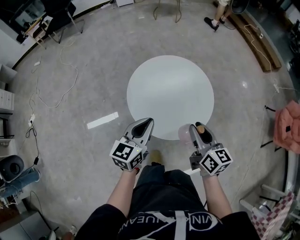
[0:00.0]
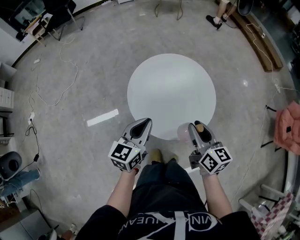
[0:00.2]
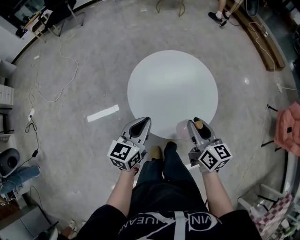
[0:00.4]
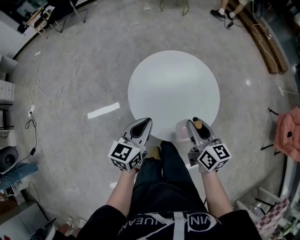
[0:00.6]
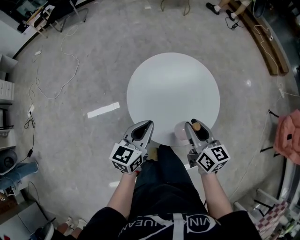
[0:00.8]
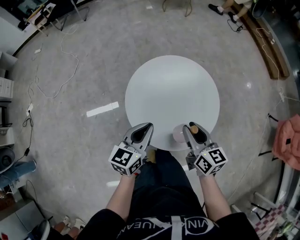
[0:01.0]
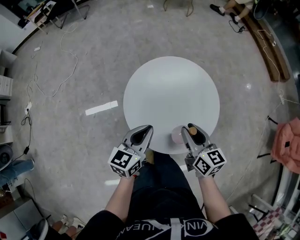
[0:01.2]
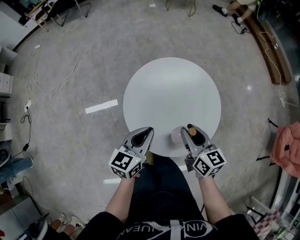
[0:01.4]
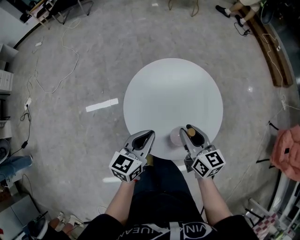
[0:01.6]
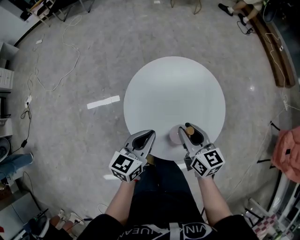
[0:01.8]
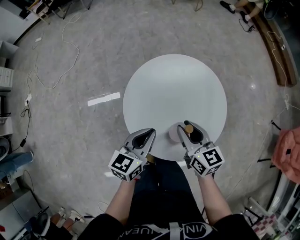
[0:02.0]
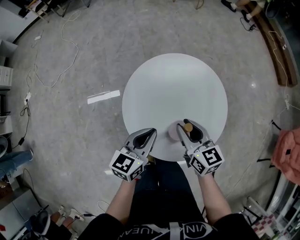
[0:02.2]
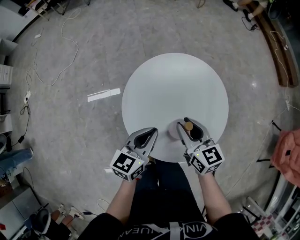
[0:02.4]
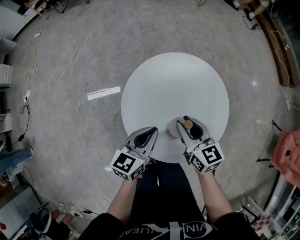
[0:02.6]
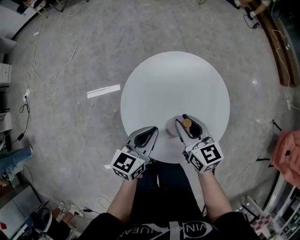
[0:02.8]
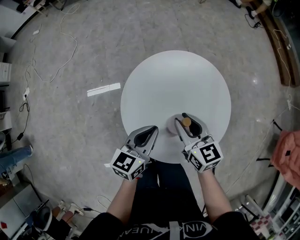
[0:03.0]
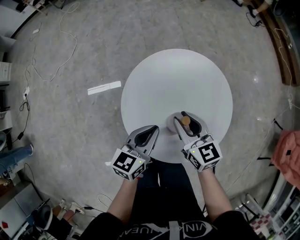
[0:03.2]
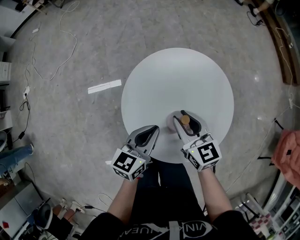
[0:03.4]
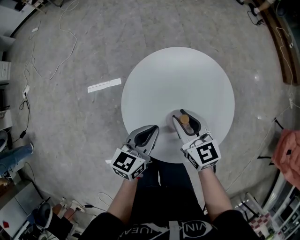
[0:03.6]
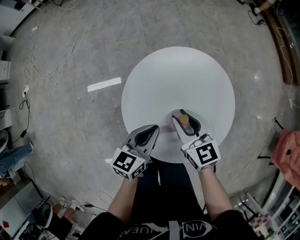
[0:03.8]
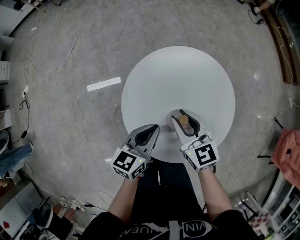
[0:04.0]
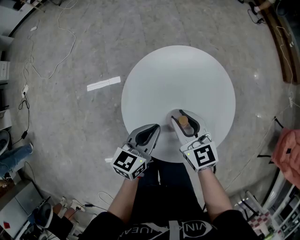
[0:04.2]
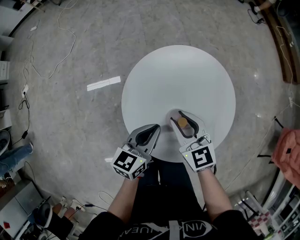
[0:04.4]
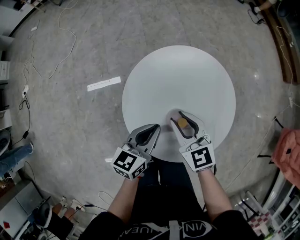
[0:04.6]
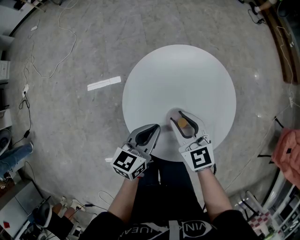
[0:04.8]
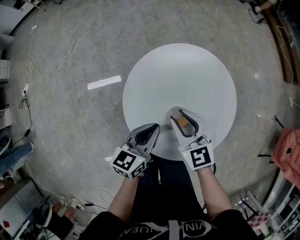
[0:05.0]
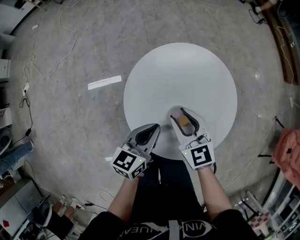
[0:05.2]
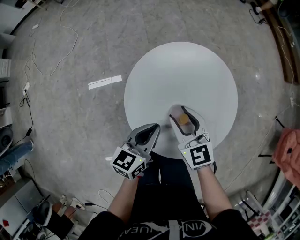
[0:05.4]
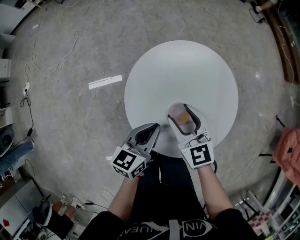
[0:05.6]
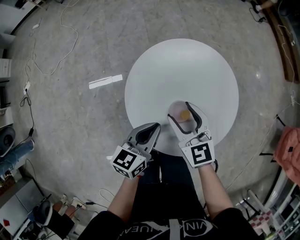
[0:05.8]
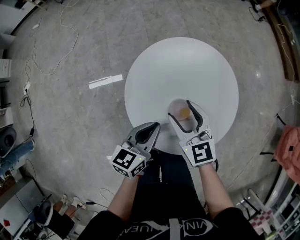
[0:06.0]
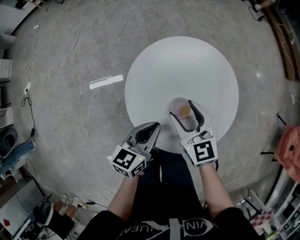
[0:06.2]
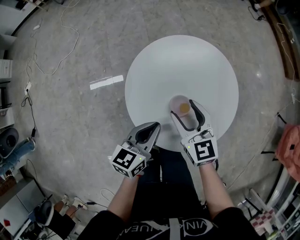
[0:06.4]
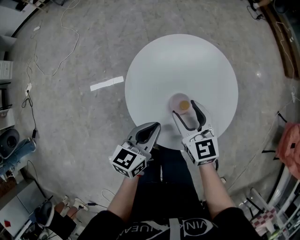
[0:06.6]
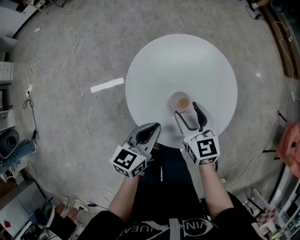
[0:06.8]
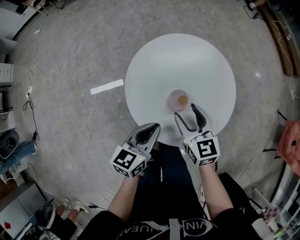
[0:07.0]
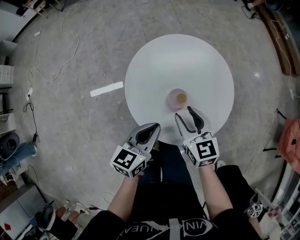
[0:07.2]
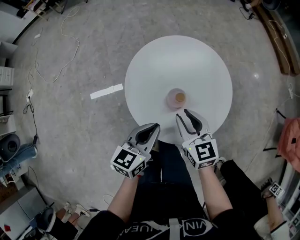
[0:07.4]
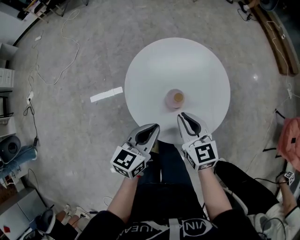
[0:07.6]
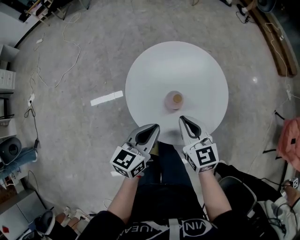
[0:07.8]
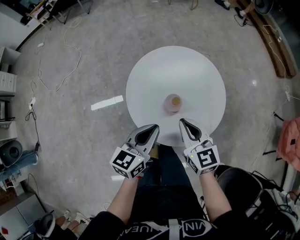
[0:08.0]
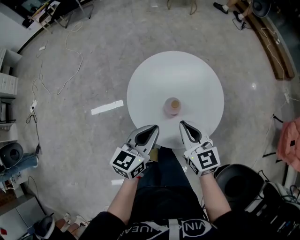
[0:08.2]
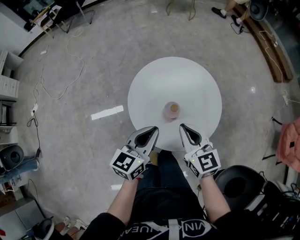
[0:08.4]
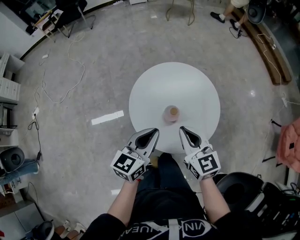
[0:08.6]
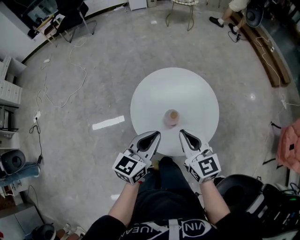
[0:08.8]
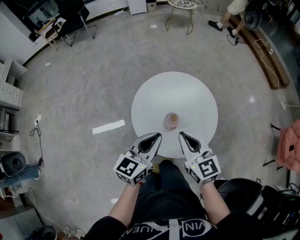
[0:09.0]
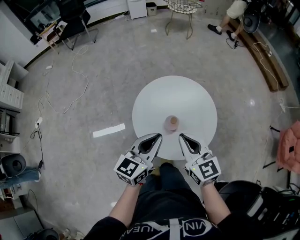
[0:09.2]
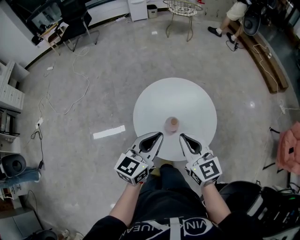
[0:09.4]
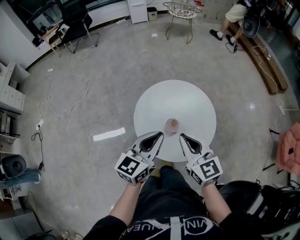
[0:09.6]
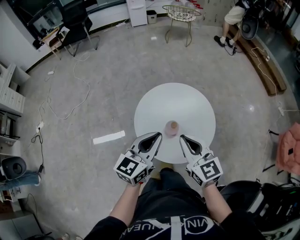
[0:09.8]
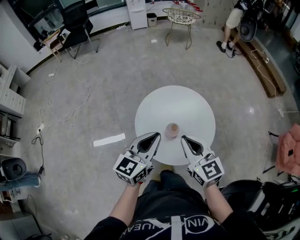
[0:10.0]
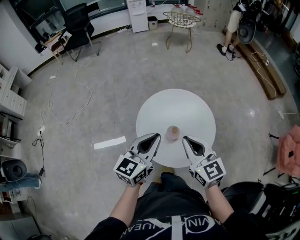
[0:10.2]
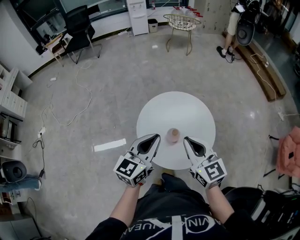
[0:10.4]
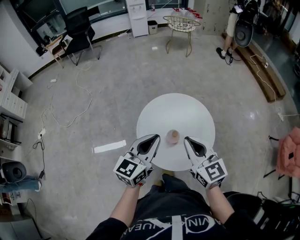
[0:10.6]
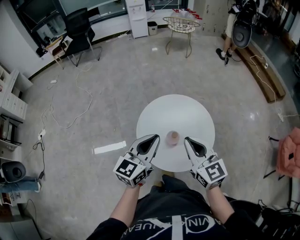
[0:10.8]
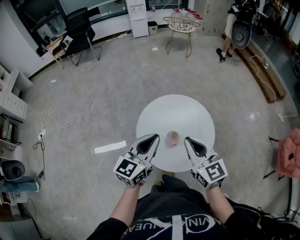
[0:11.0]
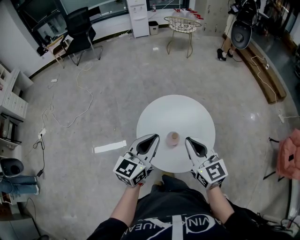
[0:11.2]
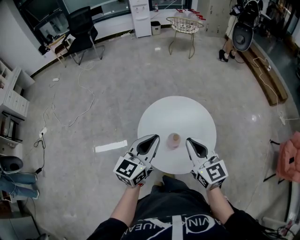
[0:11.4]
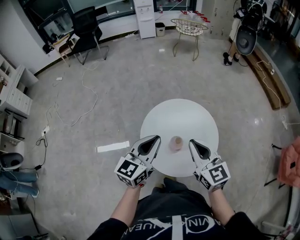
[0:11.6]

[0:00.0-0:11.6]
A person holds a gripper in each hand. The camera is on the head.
0:00.0 to 0:01.4: The left gripper is displaced downward by about 5 cm. The right gripper is displaced forward and downward by approximately 10 cm.
0:01.4 to 0:02.8: The right gripper moves forward, approximately 5 cm.
0:02.8 to 0:04.4: The grippers stay close to where they were, moving slightly.
0:04.4 to 0:05.8: The right gripper opens up.
0:05.8 to 0:07.2: The right gripper moves backward, about 5 cm. The left gripper moves some 5 cm.
0:07.2 to 0:08.8: The two grippers go approximately 10 cm upward. The right gripper closes up.
0:08.8 to 0:10.2: Both grippers travel together upward, about 10 cm.
0:10.2 to 0:11.6: The grippers stay close to where they were, moving slightly.

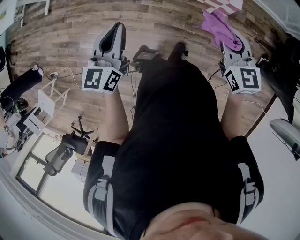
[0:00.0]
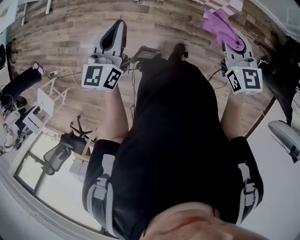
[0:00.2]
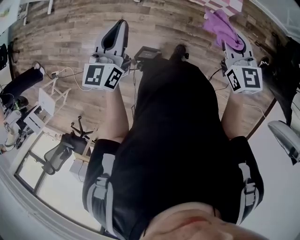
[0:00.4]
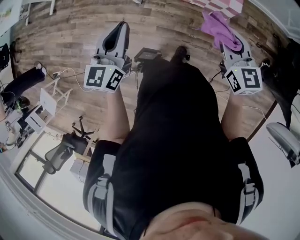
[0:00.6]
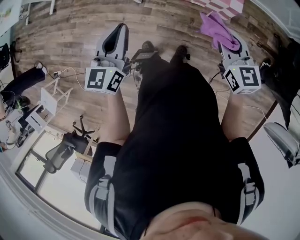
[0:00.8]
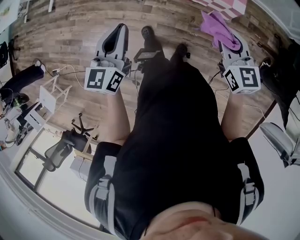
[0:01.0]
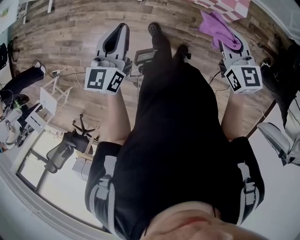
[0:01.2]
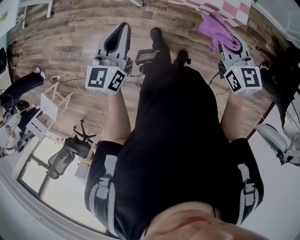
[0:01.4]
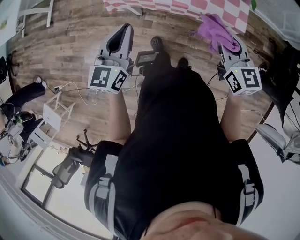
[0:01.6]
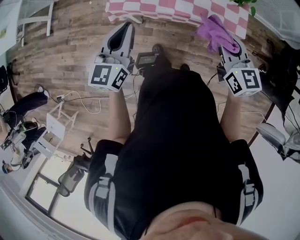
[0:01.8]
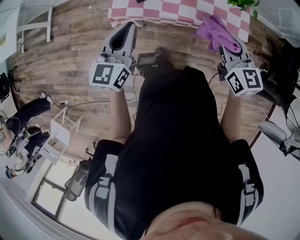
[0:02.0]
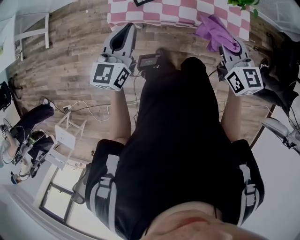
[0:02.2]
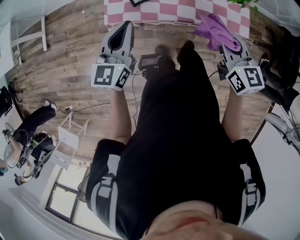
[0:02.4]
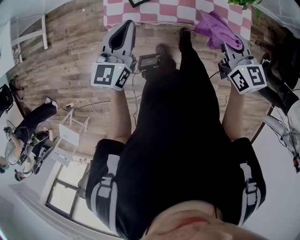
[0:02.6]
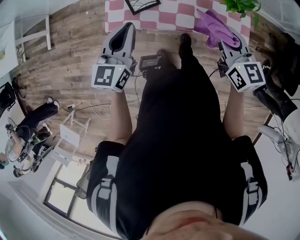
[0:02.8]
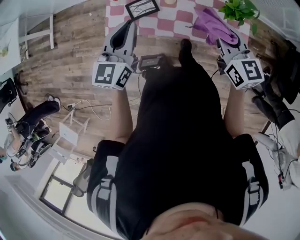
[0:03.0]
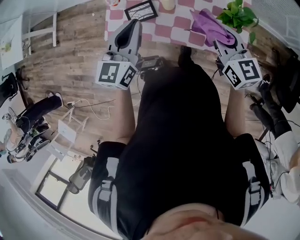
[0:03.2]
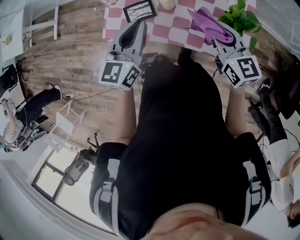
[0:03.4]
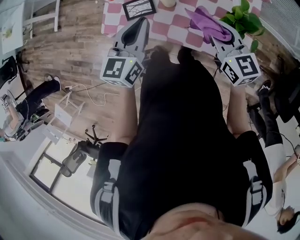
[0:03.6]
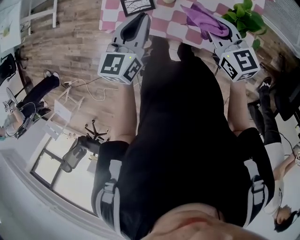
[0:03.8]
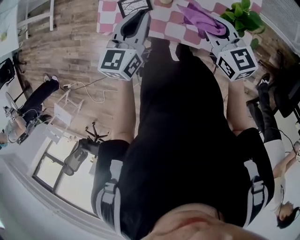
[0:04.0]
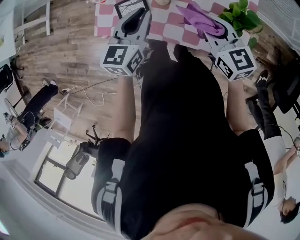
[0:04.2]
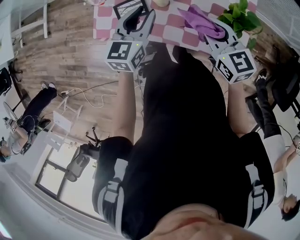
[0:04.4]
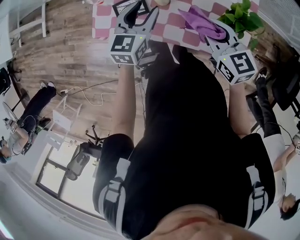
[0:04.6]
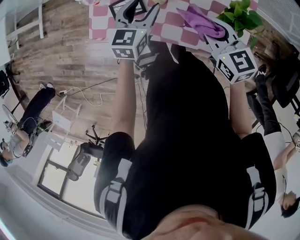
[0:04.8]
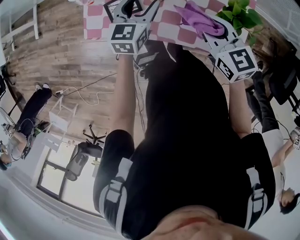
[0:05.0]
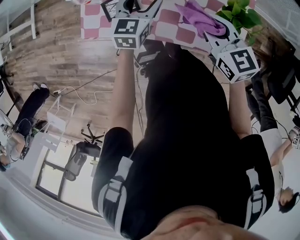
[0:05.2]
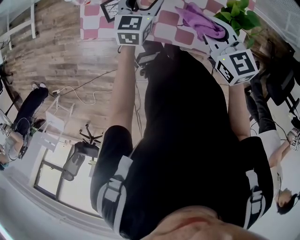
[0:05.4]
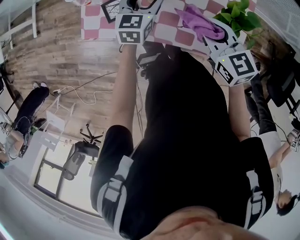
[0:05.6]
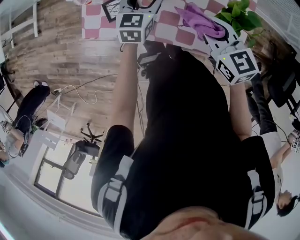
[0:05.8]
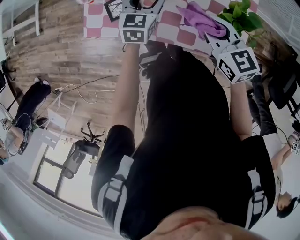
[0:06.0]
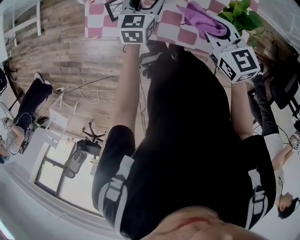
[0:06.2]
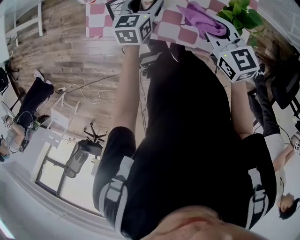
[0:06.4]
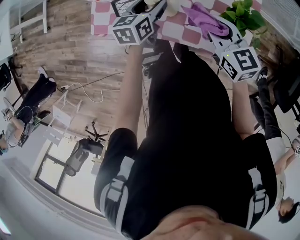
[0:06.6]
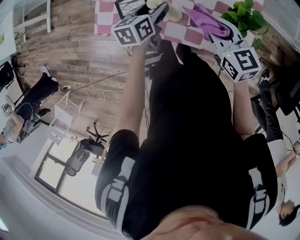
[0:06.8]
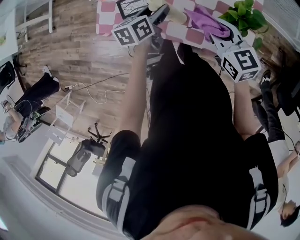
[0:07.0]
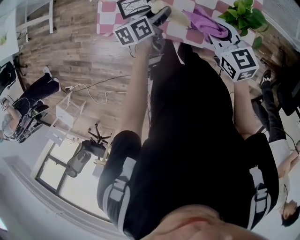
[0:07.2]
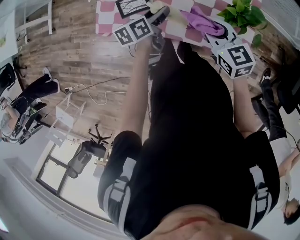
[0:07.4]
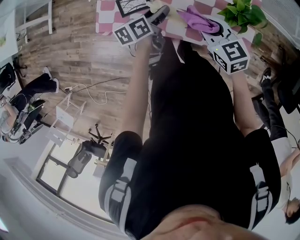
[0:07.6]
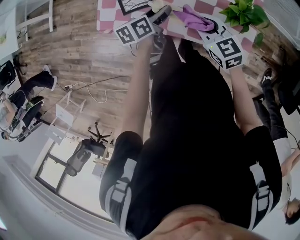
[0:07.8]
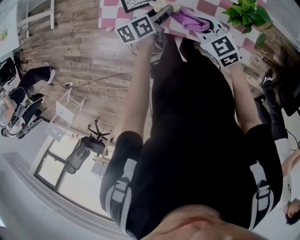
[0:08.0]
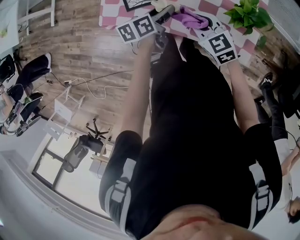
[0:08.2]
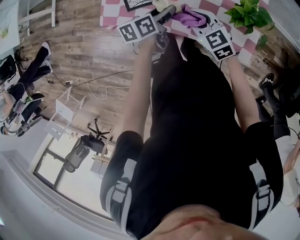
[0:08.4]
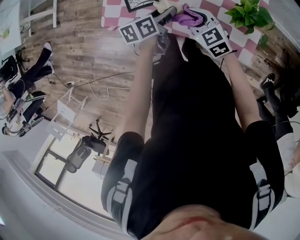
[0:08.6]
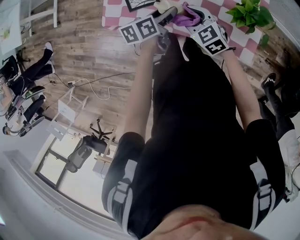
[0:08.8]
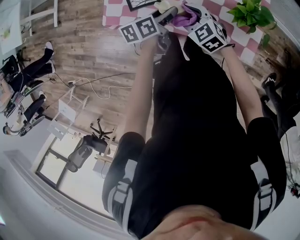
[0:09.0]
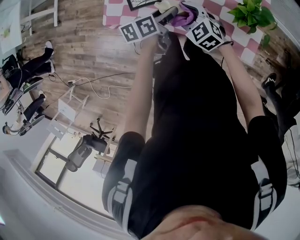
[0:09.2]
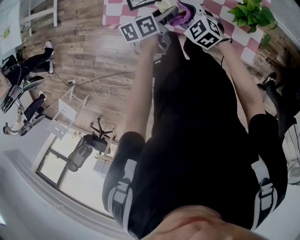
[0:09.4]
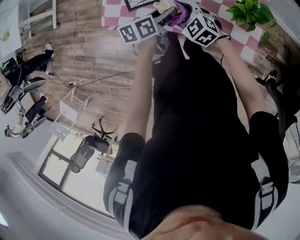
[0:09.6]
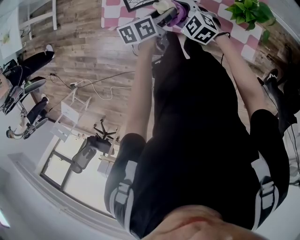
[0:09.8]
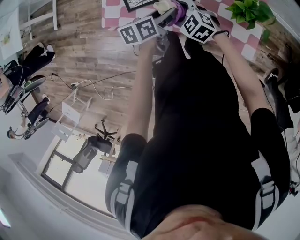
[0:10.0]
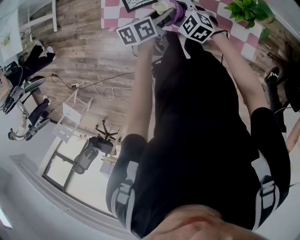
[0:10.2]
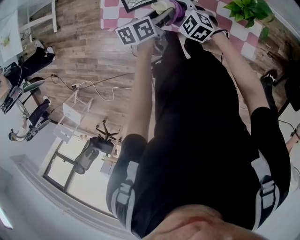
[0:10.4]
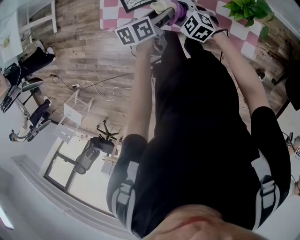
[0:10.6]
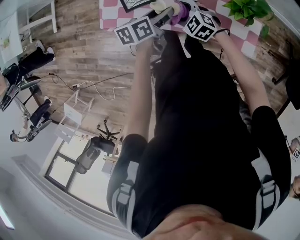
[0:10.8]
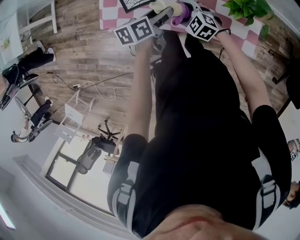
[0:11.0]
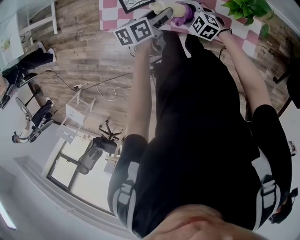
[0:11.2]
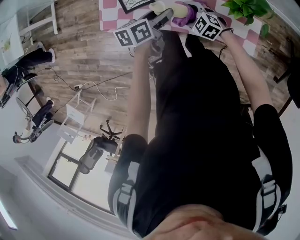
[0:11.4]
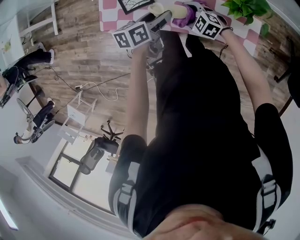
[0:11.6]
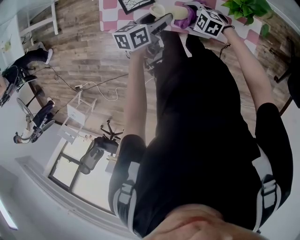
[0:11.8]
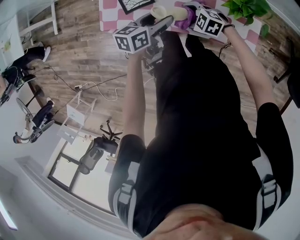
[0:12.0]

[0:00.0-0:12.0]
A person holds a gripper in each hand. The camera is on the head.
0:00.0 to 0:01.6: The right gripper moves forward and to the left, about 15 cm, while the left gripper travels forward by approximately 10 cm.
0:01.6 to 0:03.0: The grippers both shift forward by roughly 20 cm.
0:03.0 to 0:04.4: The right gripper heads forward and downward, covering roughly 10 cm. The left gripper travels to the right, downward and forward by roughly 15 cm.
0:04.4 to 0:06.0: The left gripper is displaced downward and forward by roughly 10 cm, and opens up.
0:06.0 to 0:07.6: The right gripper shifts by roughly 5 cm. The left gripper shifts approximately 10 cm backward, and twists some 50 degrees counterclockwise, seen from behind.
0:07.6 to 0:09.0: The right gripper travels to the left and downward by about 10 cm, rotates some 20 degrees, and opens.
0:09.0 to 0:10.4: There are only small adjustments of the grippers.
0:10.4 to 0:12.0: The right gripper shifts roughly 5 cm downward; the left gripper turns by about 20 degrees.
